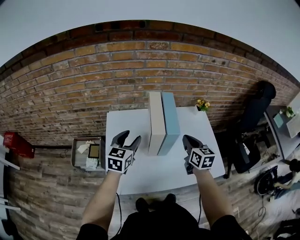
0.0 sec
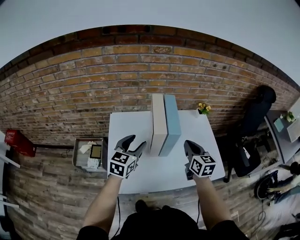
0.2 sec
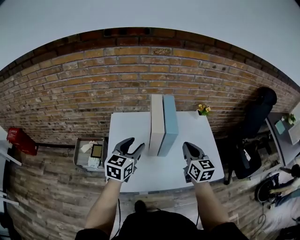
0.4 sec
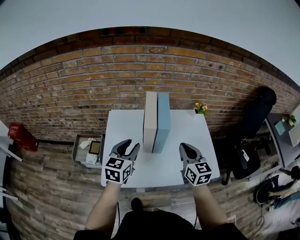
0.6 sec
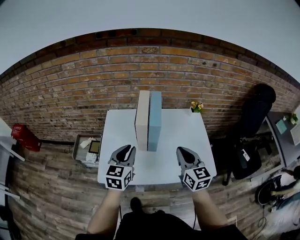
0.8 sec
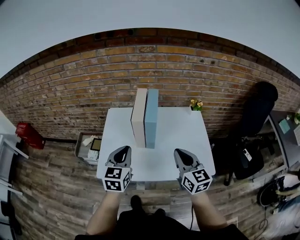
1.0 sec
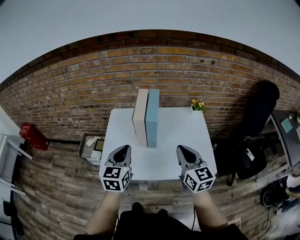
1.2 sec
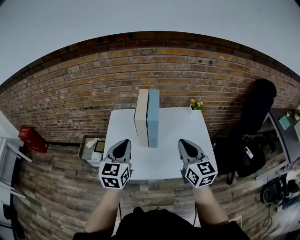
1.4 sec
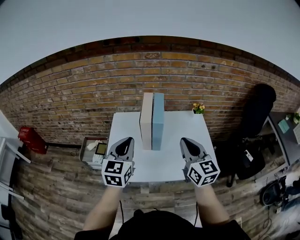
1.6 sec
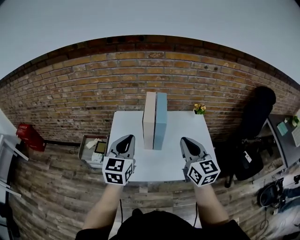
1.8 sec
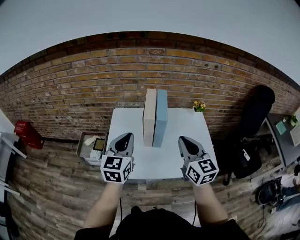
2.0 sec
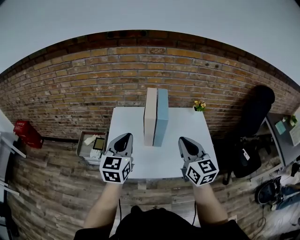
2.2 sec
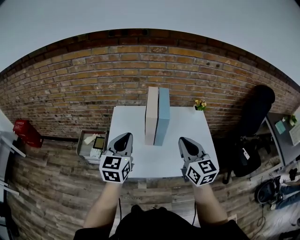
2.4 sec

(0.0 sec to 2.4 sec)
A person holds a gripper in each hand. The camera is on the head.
0.0 sec - 1.2 sec: Both grippers move backward and upward, about 20 cm. The right gripper turns by some 20 degrees. The left gripper closes its fingers.
1.2 sec - 2.4 sec: The grippers both shift to the left by approximately 5 cm.

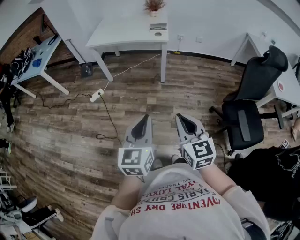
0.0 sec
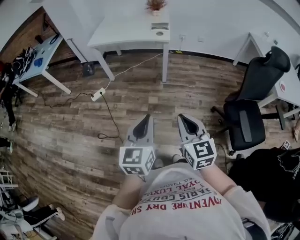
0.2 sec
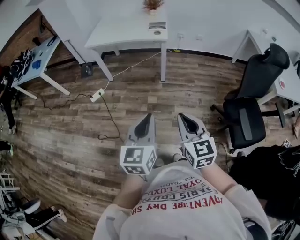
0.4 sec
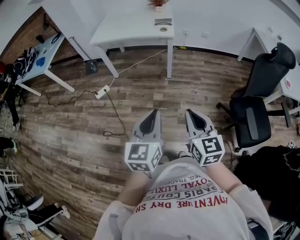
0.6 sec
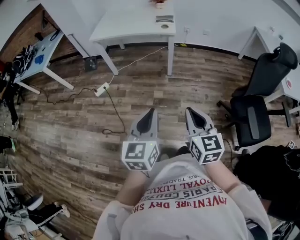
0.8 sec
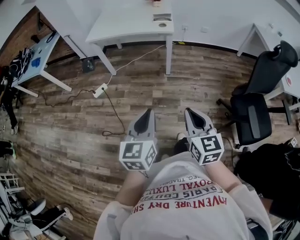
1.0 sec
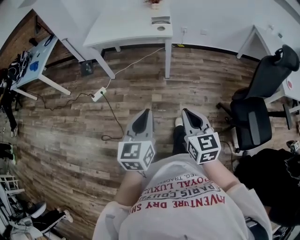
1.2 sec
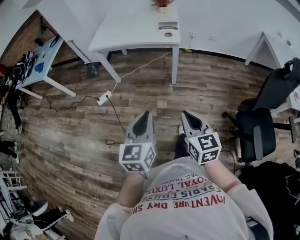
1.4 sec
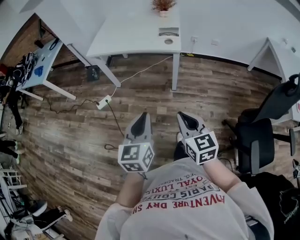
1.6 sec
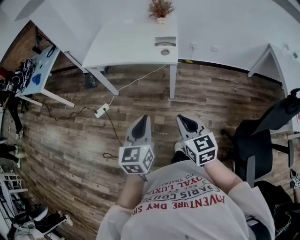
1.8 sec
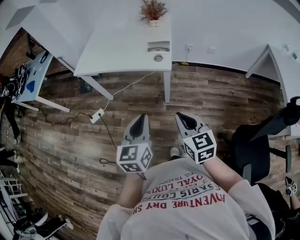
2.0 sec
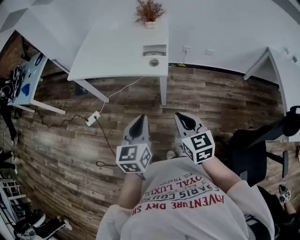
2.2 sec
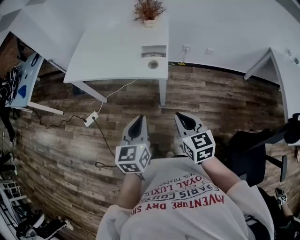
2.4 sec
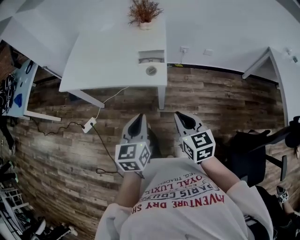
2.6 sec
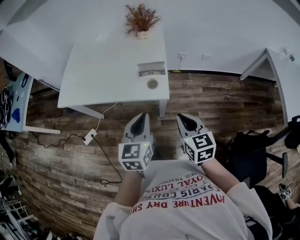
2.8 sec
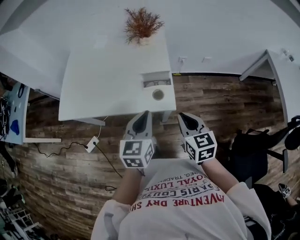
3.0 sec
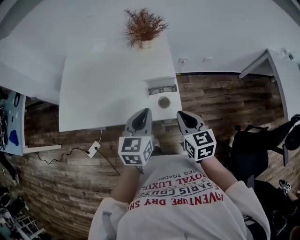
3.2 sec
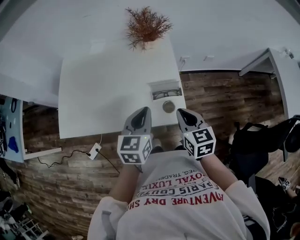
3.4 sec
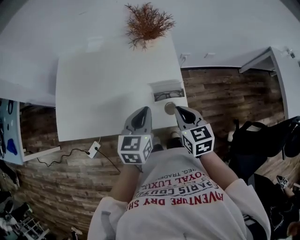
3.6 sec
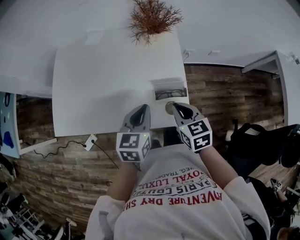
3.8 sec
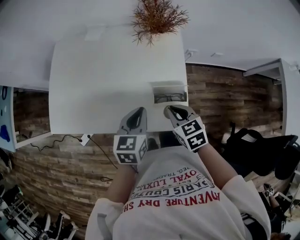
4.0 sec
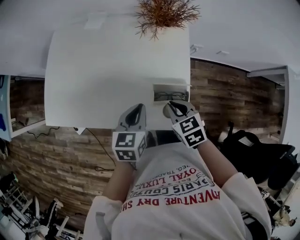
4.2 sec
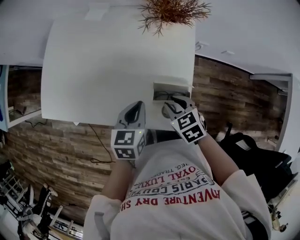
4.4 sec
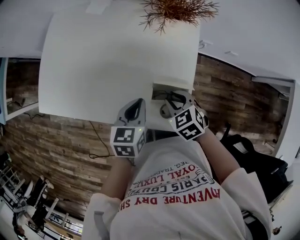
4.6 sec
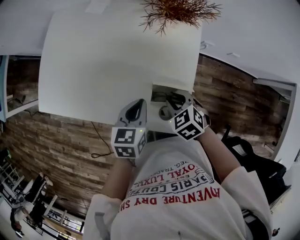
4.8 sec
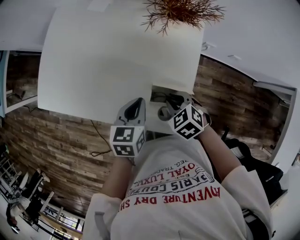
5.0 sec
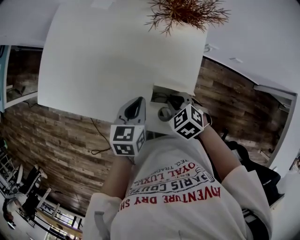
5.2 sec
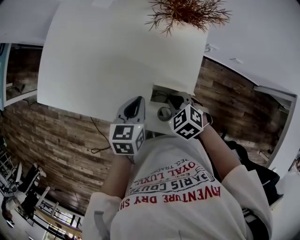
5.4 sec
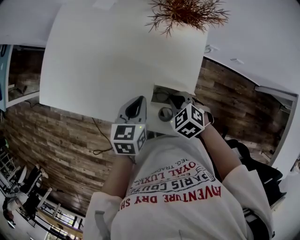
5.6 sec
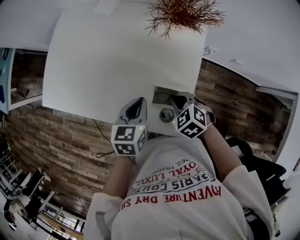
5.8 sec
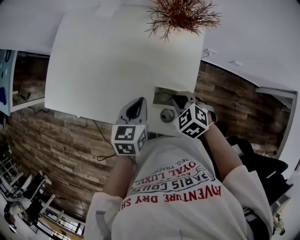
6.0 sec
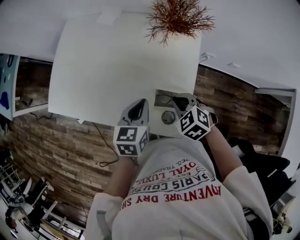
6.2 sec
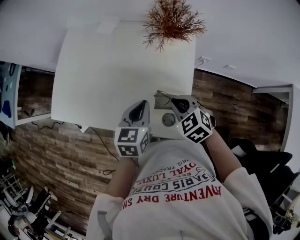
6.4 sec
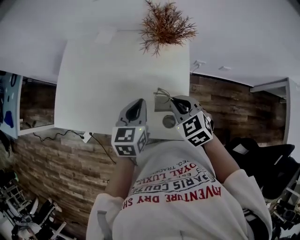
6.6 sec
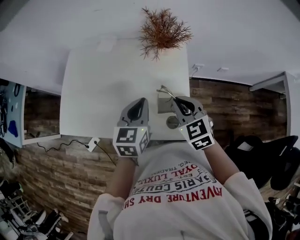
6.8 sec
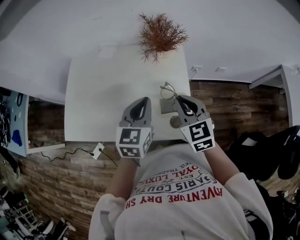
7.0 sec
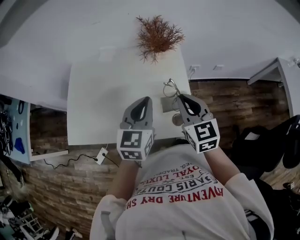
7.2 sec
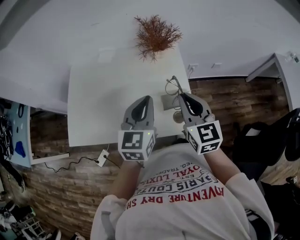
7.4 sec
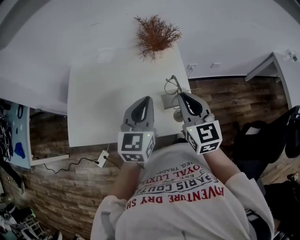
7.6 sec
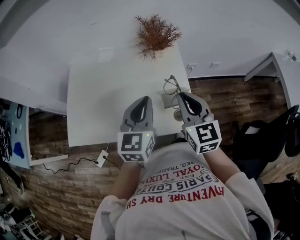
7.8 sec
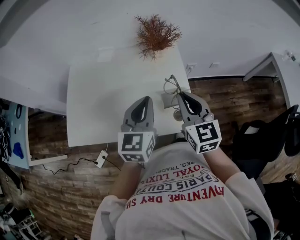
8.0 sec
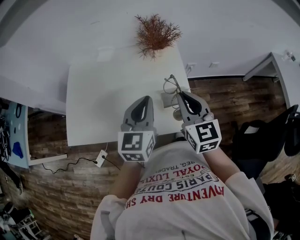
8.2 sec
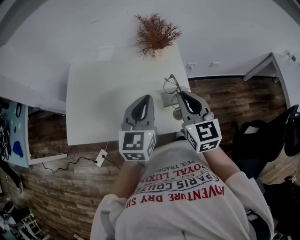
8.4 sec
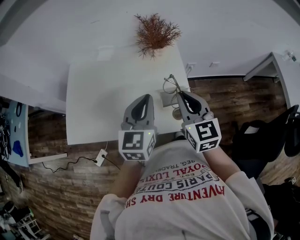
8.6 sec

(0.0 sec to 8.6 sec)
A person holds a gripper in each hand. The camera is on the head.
0.0 sec - 1.4 sec: Both grippers move forward, about 15 cm.
1.4 sec - 2.8 sec: The pair of grippers is taken forward, about 50 cm.
2.8 sec - 4.4 sec: Both grippers move forward and downward, approximately 30 cm. The left gripper changes its angle by some 20 degrees. The right gripper swivels some 40 degrees, and opens.
4.4 sec - 5.8 sec: The right gripper rotates about 30 degrees, and closes up.
5.8 sec - 7.2 sec: The grippers both shift upward by some 20 cm. The left gripper changes its angle by approximately 40 degrees; the right gripper tilts its fingers roughly 40 degrees upward.
7.2 sec - 8.6 sec: The grippers move only a little.

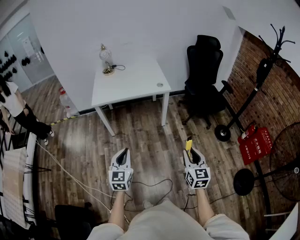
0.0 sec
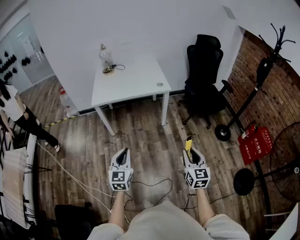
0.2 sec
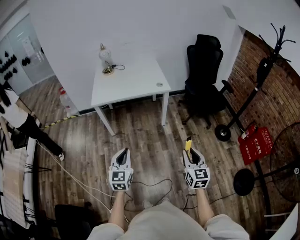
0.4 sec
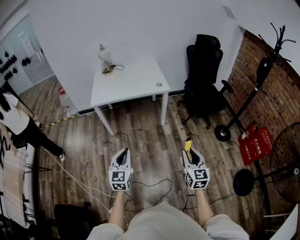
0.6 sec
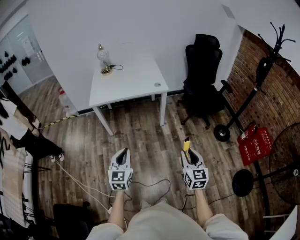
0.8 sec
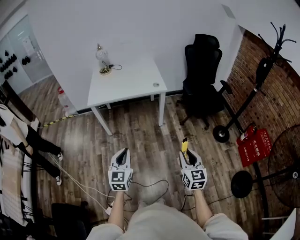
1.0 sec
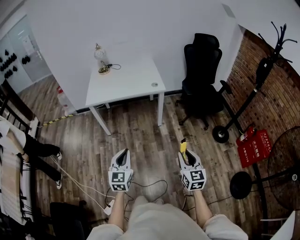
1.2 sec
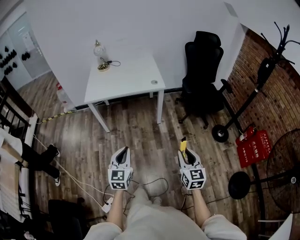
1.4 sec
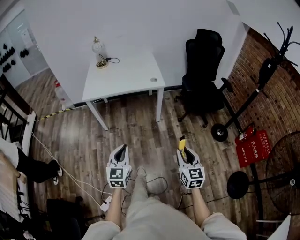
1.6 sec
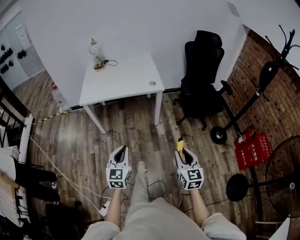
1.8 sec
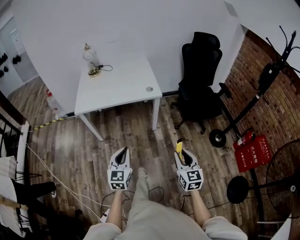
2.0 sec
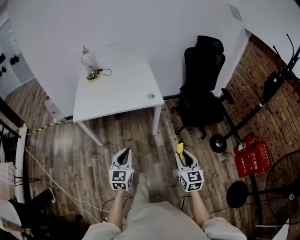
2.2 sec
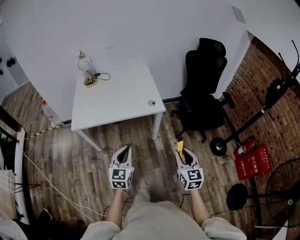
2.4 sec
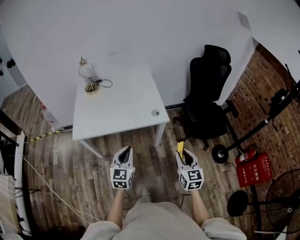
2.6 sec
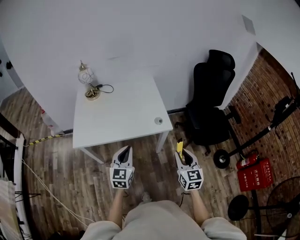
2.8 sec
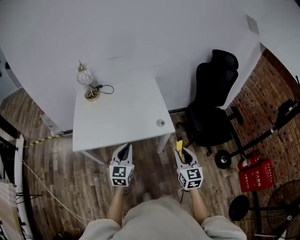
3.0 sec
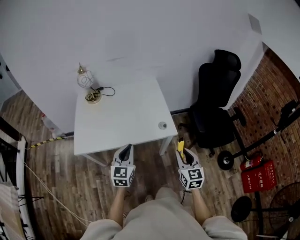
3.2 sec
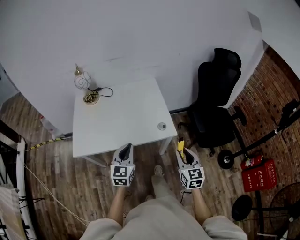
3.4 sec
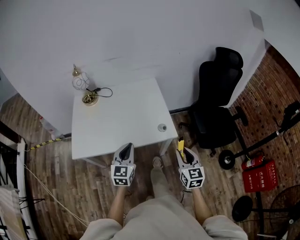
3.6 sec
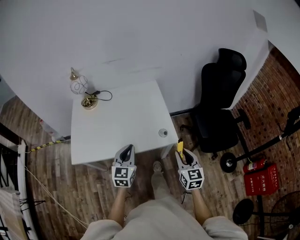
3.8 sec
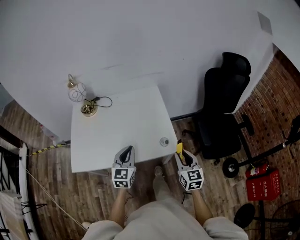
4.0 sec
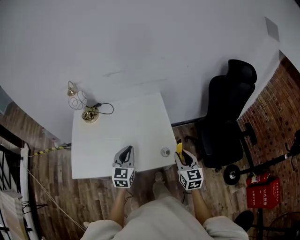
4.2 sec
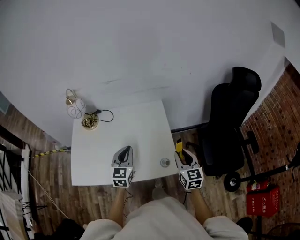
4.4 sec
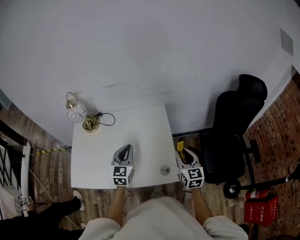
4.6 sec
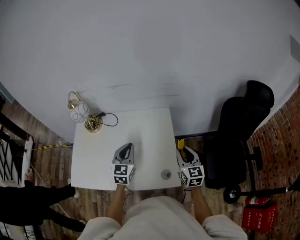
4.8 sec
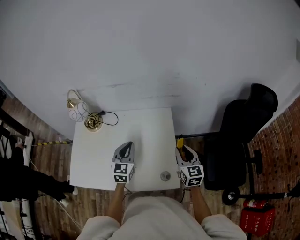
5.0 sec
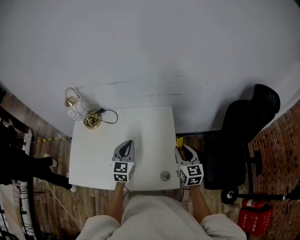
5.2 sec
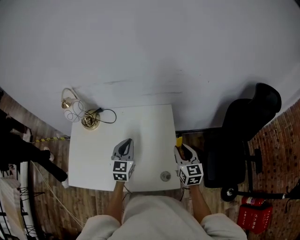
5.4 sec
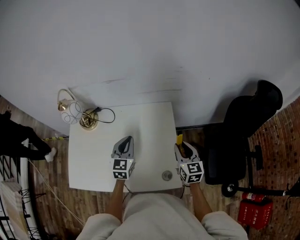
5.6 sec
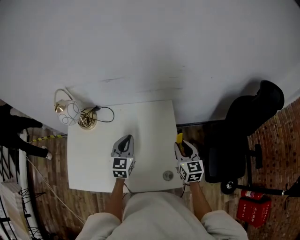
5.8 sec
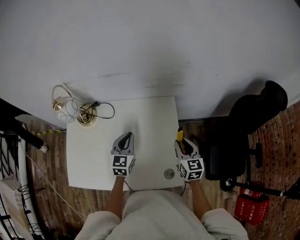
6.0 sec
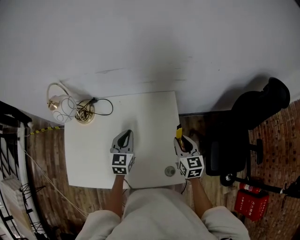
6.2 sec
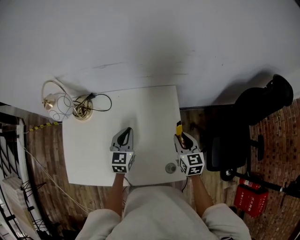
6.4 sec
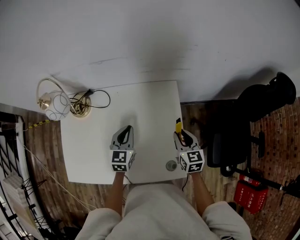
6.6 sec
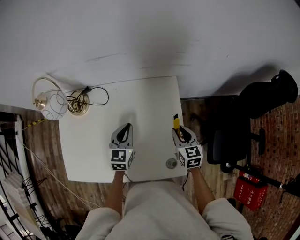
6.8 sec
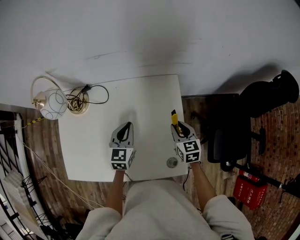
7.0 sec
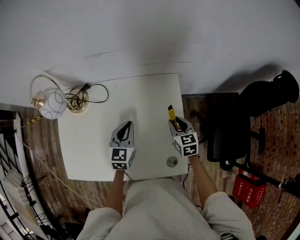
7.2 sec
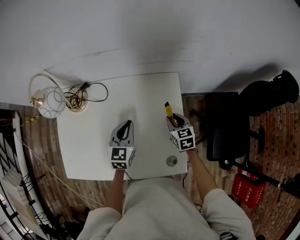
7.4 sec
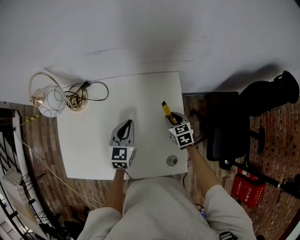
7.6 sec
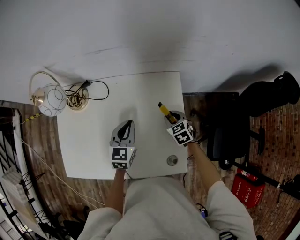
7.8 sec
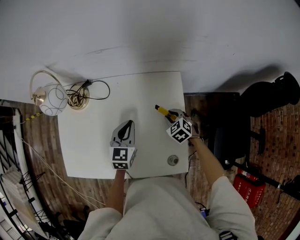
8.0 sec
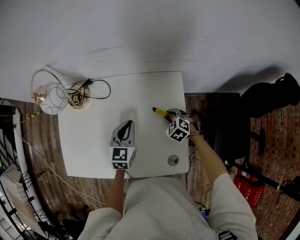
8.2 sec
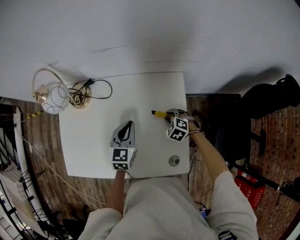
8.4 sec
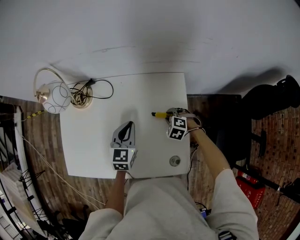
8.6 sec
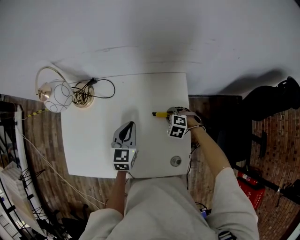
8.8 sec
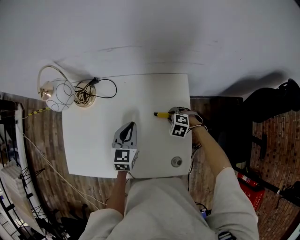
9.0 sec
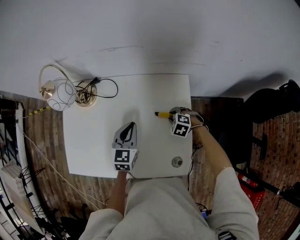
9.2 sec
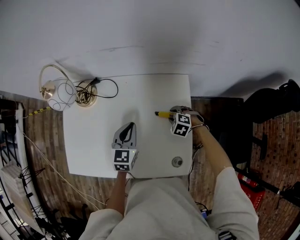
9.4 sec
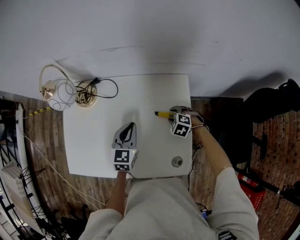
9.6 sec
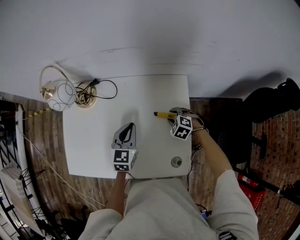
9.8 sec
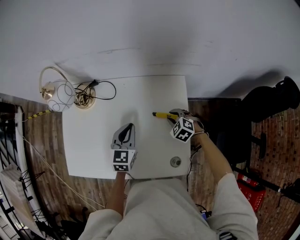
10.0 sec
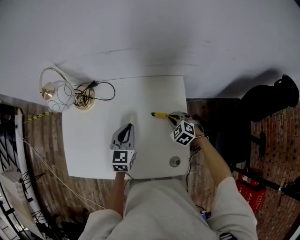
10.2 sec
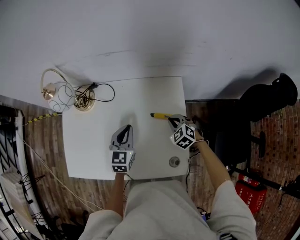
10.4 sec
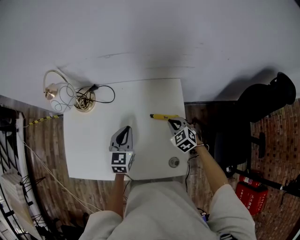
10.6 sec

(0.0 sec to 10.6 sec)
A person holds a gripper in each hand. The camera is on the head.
0.0 sec - 1.6 sec: Both grippers travel together to the right and forward, roughly 10 cm.
1.6 sec - 3.0 sec: The pair of grippers is taken forward, roughly 50 cm.
3.0 sec - 4.6 sec: The two grippers go some 35 cm forward.
4.6 sec - 6.0 sec: The two grippers go roughly 15 cm forward and downward.
6.0 sec - 7.6 sec: The left gripper travels downward by roughly 5 cm, while the right gripper goes roughly 15 cm downward and forward, and changes its angle by about 30 degrees.
7.6 sec - 9.0 sec: The right gripper goes approximately 5 cm downward, and rotates around the line of its fingers by approximately 50 degrees, counterclockwise from behind.
9.0 sec - 10.6 sec: The right gripper heads upward, covering approximately 10 cm, changes its angle by some 40 degrees, and closes up.

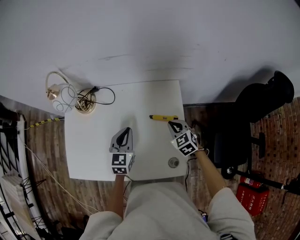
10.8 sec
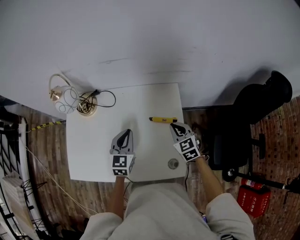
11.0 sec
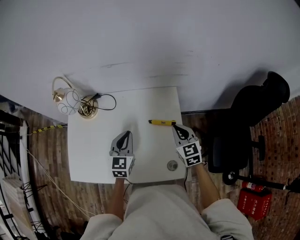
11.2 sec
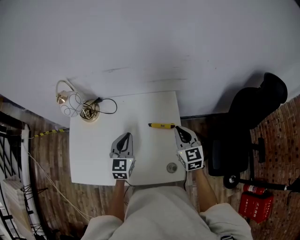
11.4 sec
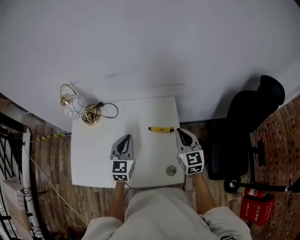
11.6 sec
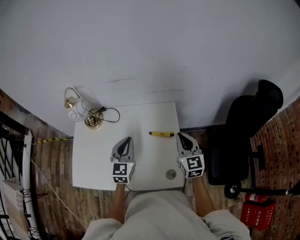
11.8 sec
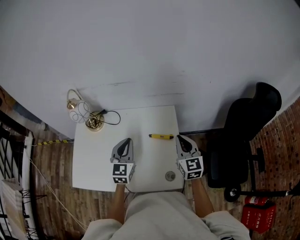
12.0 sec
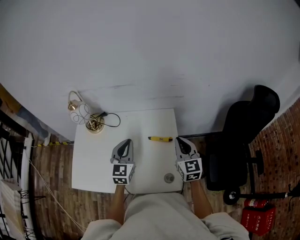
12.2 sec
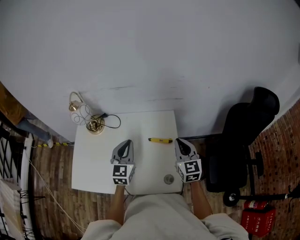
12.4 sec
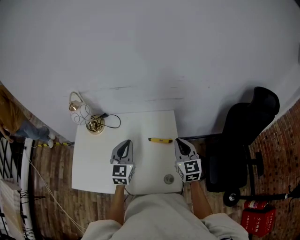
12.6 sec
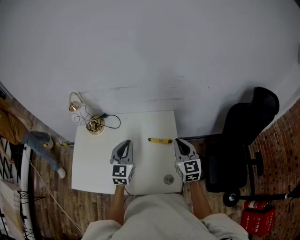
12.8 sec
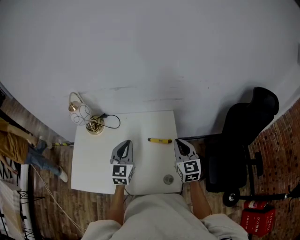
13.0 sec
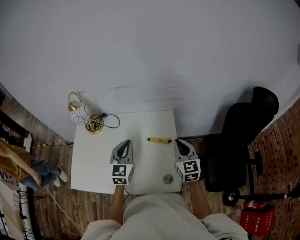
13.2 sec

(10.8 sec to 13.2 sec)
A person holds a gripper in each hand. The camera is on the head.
10.8 sec - 12.0 sec: The left gripper goes about 10 cm upward. The right gripper is displaced upward by approximately 20 cm, and tilts its fingers some 30 degrees upward.
12.0 sec - 13.2 sec: Both grippers stay about where they are.
